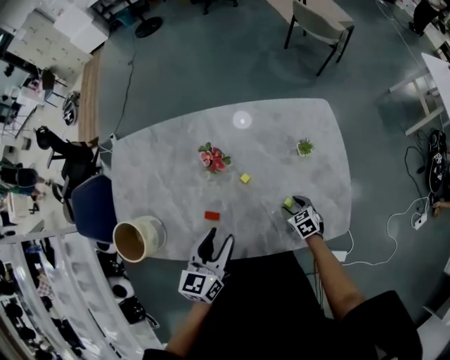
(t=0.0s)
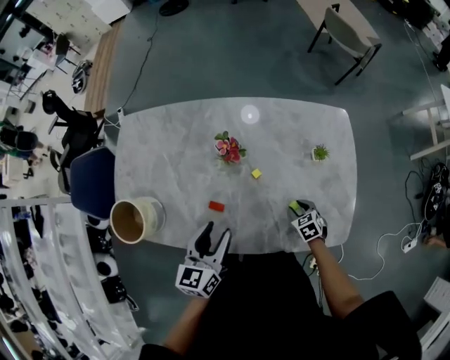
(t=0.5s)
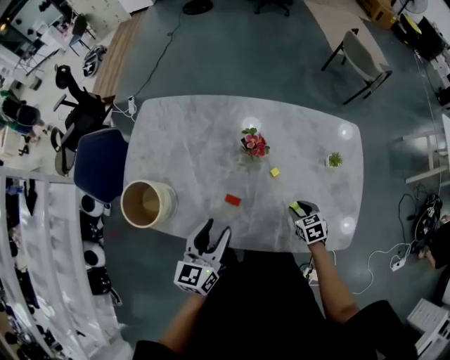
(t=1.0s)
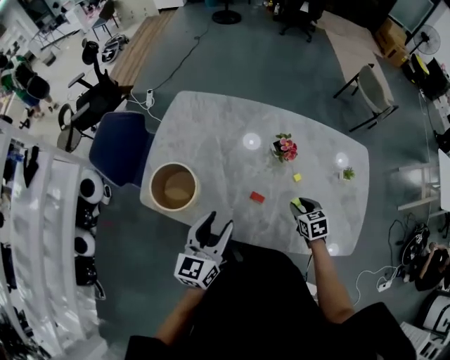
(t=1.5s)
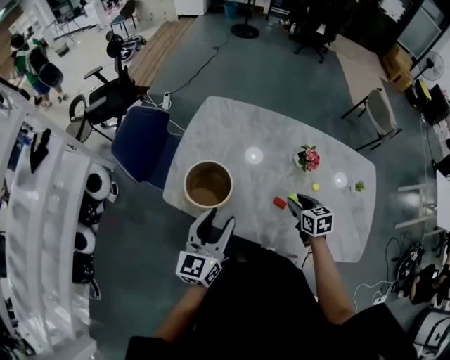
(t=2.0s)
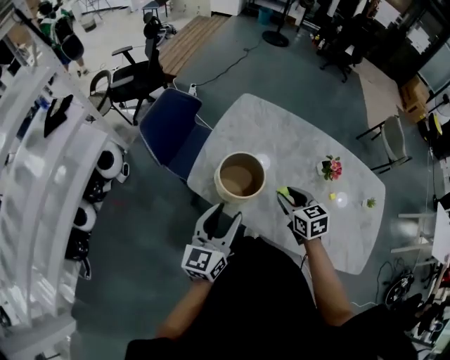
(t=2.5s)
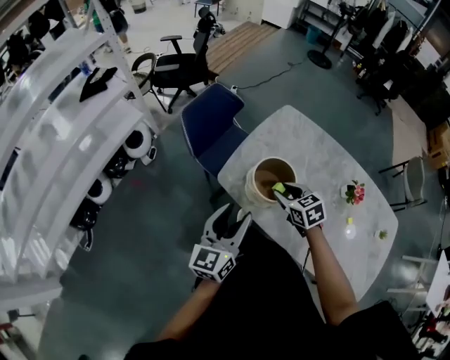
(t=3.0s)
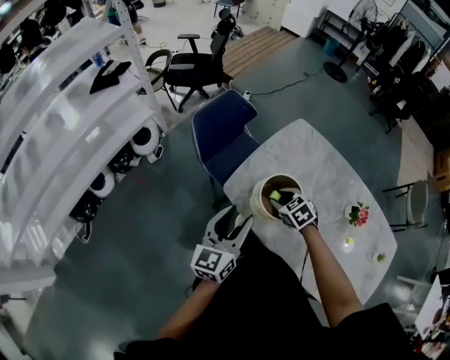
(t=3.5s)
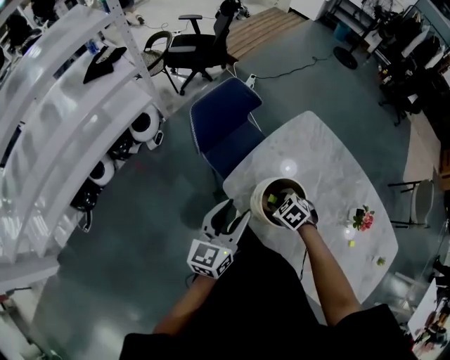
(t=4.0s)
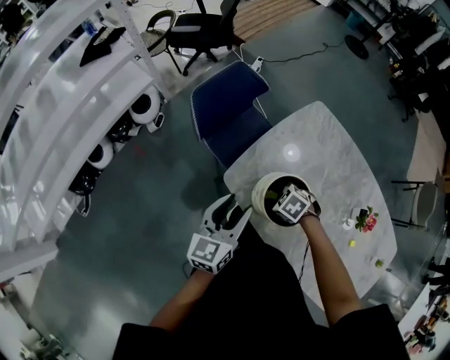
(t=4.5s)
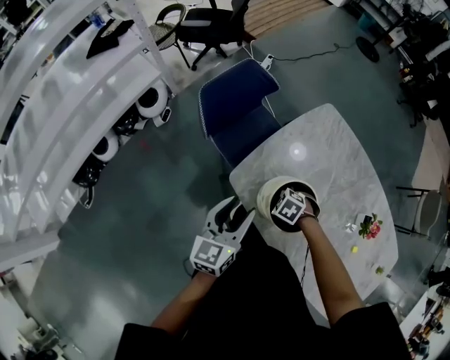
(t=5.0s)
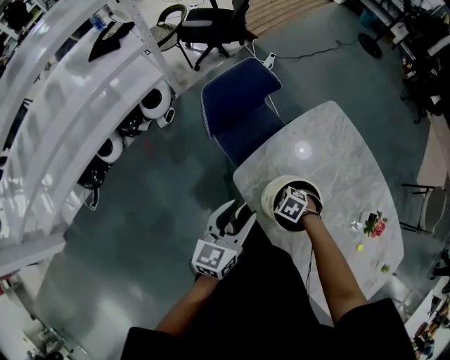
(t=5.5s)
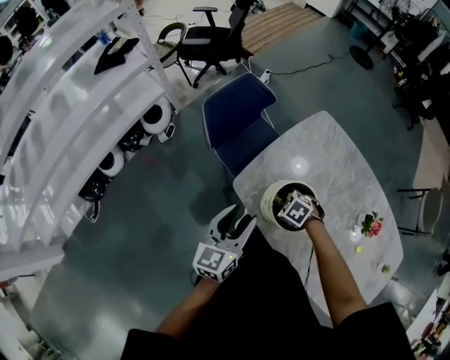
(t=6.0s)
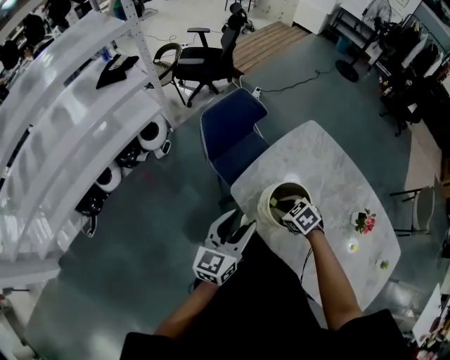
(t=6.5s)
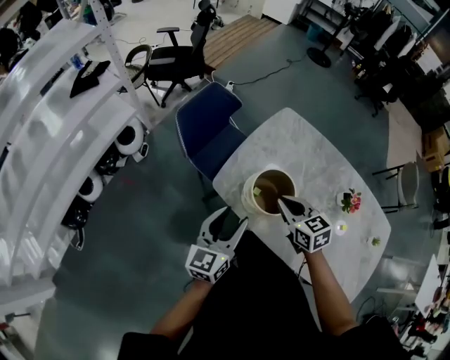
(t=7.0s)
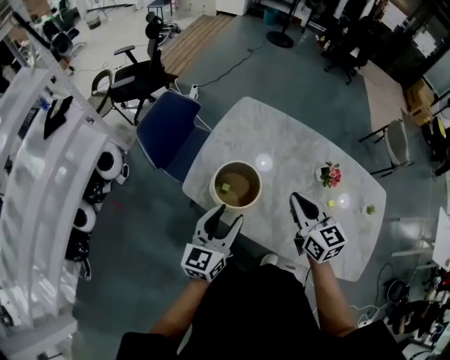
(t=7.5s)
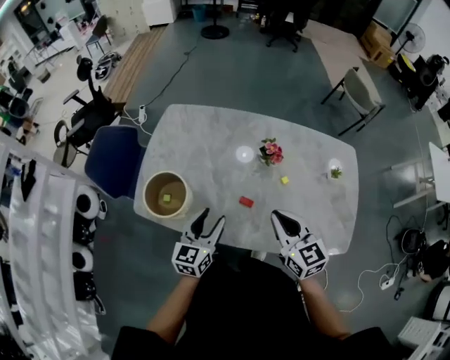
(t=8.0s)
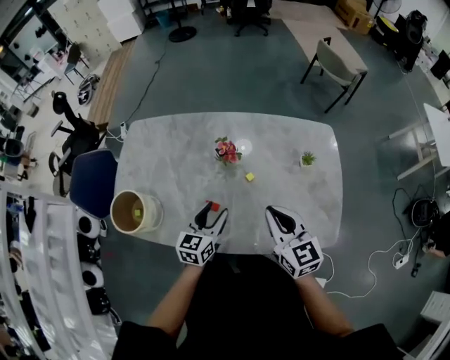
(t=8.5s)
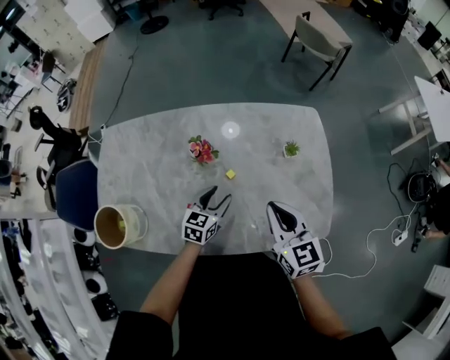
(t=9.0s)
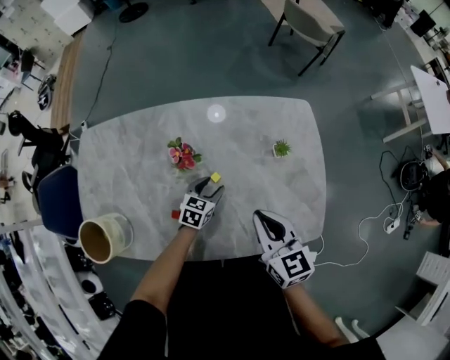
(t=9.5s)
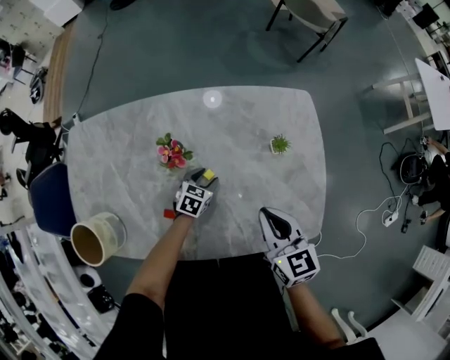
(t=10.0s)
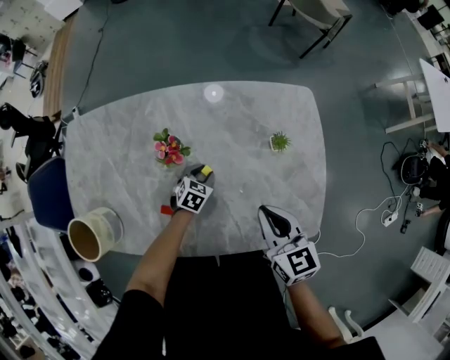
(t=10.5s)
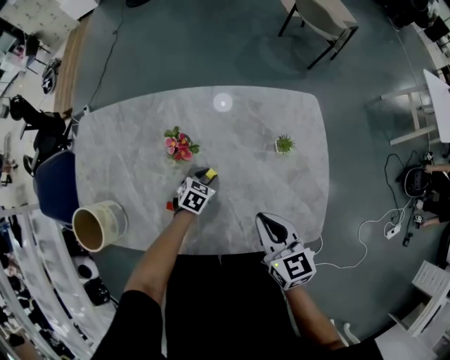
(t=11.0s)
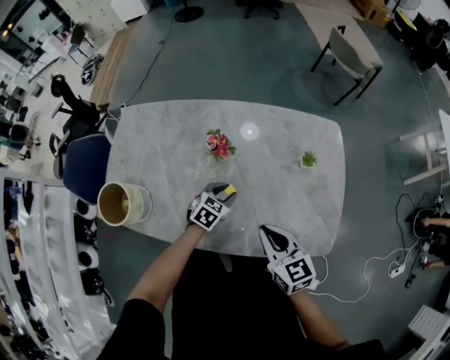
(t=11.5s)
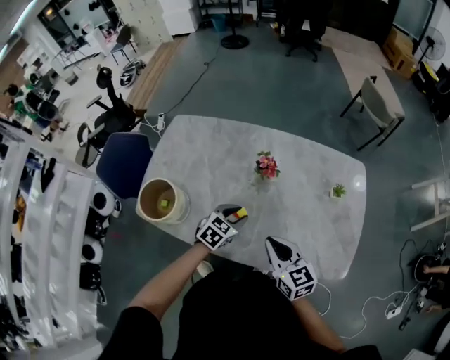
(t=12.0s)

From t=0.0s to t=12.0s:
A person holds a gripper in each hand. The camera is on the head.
From t=0.0s to t=2.0s: The left gripper goes approximately 35 cm to the left, and turns by approximately 30 degrees. Meanwhile the right gripper shifts approximately 40 cm to the left and upward.
From t=2.0s to t=4.0s: The right gripper changes place by some 35 cm, and rotates around the line of its fingers by roughly 60 degrees, counterclockwise from behind, while the left gripper ends up roughly 20 cm from where it was, and turns by roughly 20 degrees.
From t=6.0s to t=8.0s: The right gripper shifts by some 50 cm, tilts its fingers approximately 50 degrees upward, and closes. Meanwhile the left gripper moves about 35 cm, and swivels about 40 degrees.
From t=8.0s to t=10.0s: The left gripper changes place by about 50 cm, and angles its fingers downward, by some 40 degrees. The right gripper ends up about 30 cm from where it was, and changes its angle by some 20 degrees.
From t=10.0s to t=12.0s: The left gripper shifts some 25 cm upward, backward and to the left; the right gripper is displaced to the left and backward by some 20 cm, and turns by approximately 20 degrees.

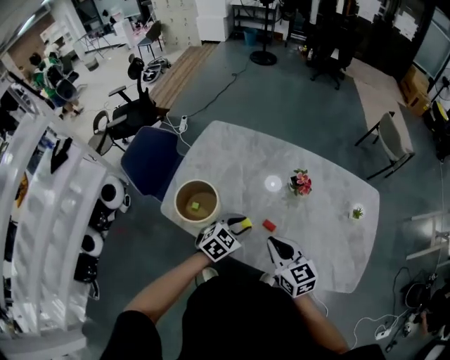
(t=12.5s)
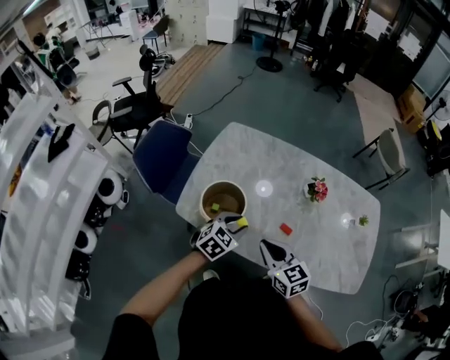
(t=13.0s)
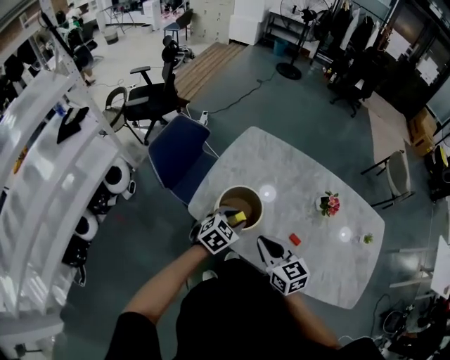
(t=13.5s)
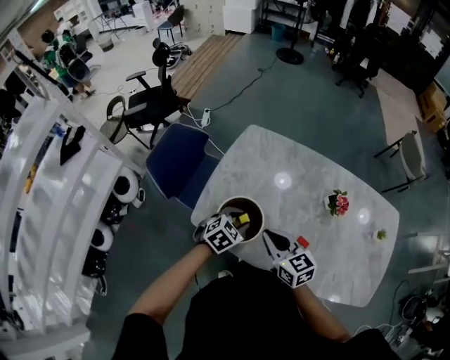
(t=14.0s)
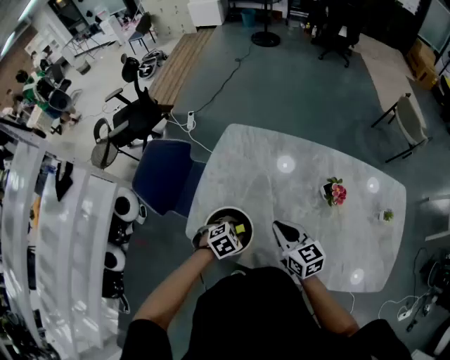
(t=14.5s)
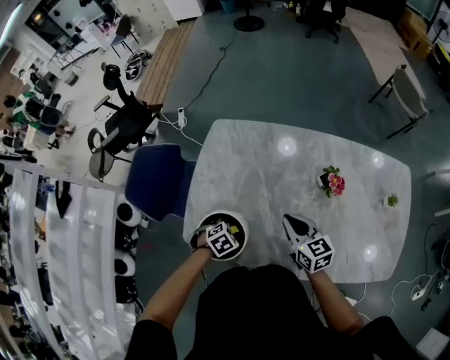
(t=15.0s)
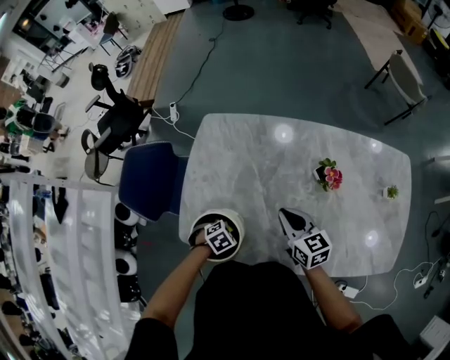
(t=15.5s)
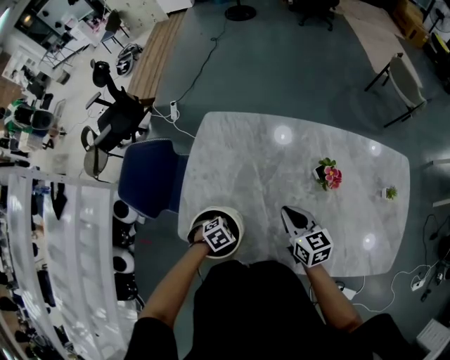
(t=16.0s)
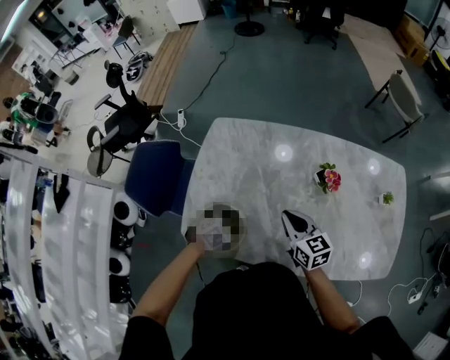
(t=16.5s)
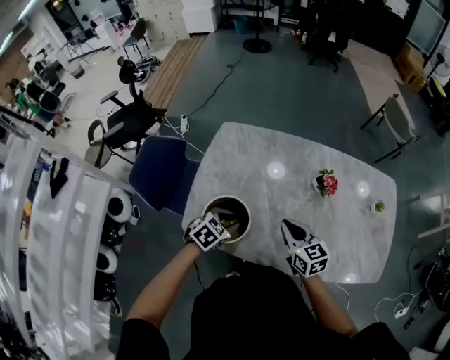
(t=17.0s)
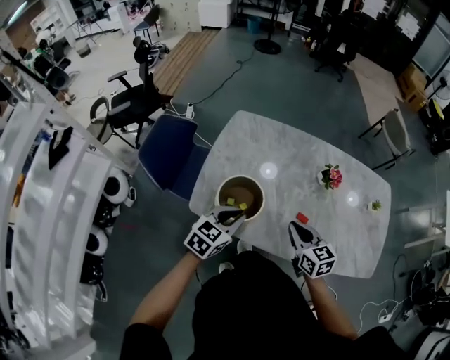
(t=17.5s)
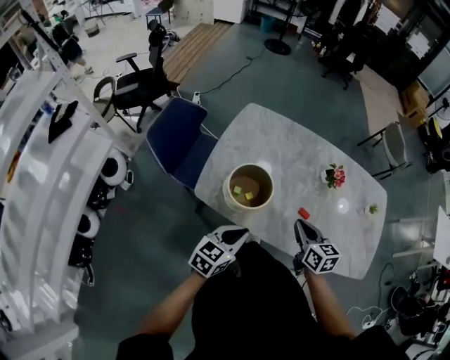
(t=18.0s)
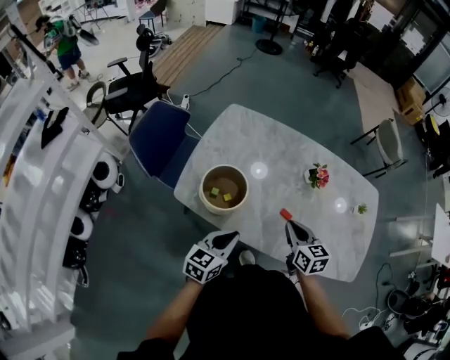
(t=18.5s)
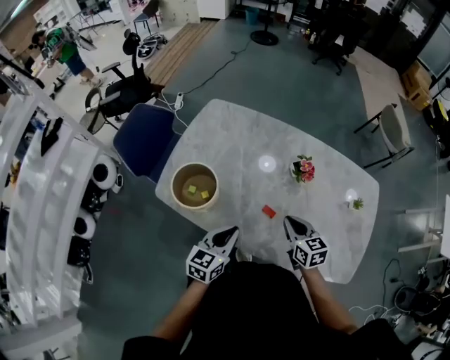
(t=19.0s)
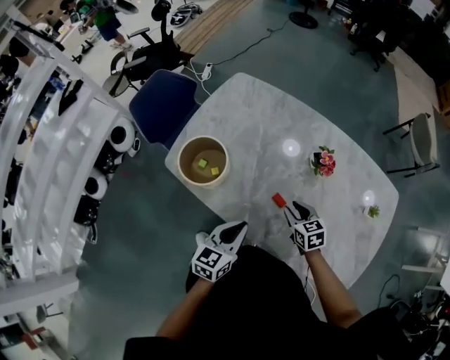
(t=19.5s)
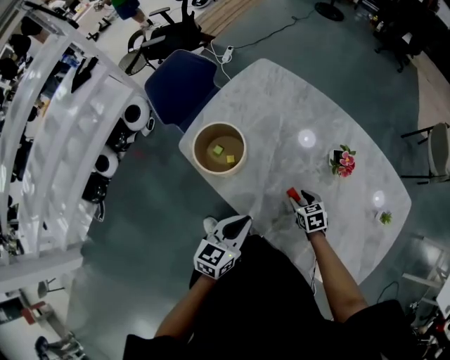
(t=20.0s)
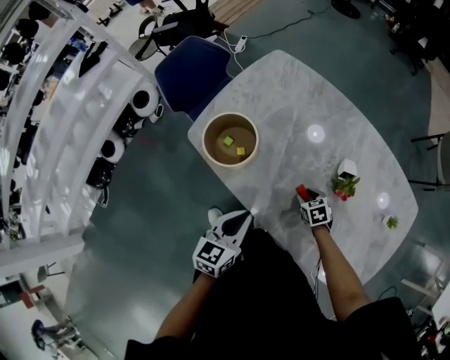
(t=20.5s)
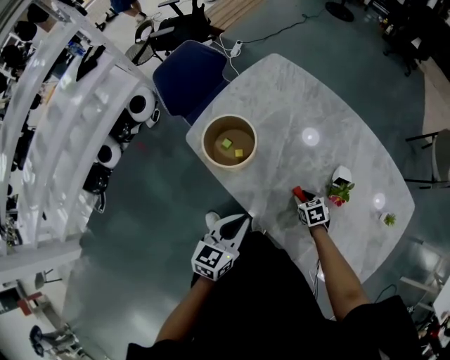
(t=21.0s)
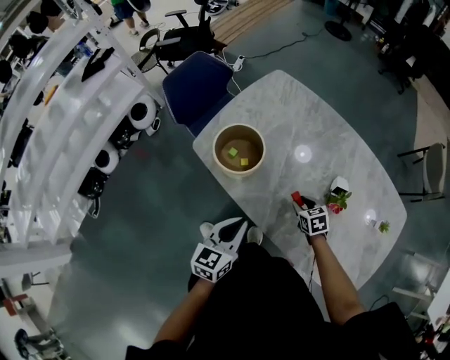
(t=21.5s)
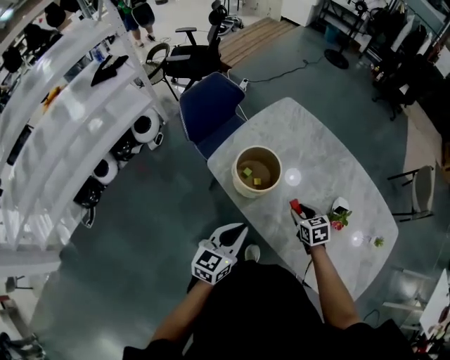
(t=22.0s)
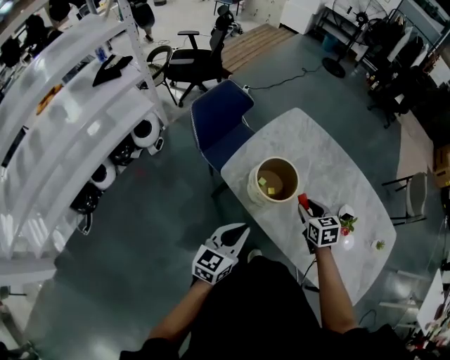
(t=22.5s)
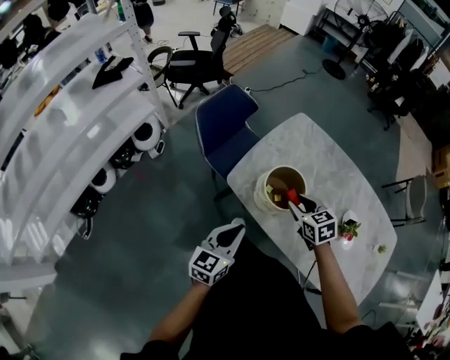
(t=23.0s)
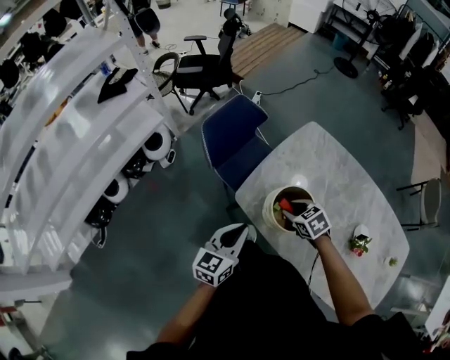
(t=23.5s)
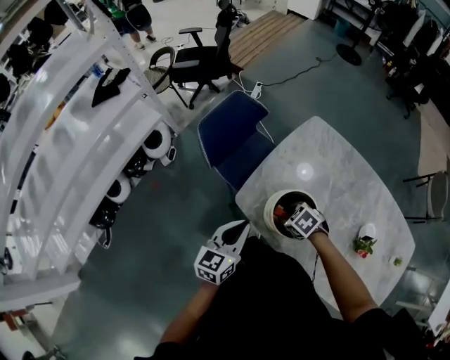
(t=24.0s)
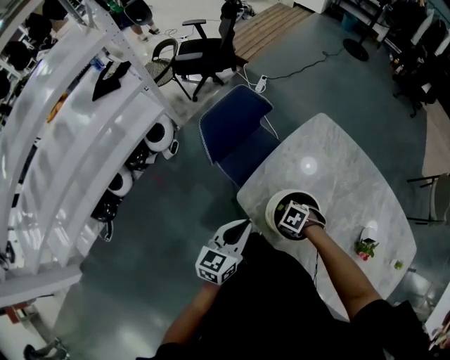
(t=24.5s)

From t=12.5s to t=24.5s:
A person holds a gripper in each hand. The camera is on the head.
From t=12.5s to t=14.5s: The right gripper shifts roughly 20 cm to the left and forward. The left gripper goes roughly 20 cm to the left and downward, and swivels some 30 degrees.
From t=14.5s to t=16.5s: The right gripper ends up some 5 cm from where it was.
From t=16.5s to t=18.5s: The right gripper shifts some 15 cm backward. The left gripper moves backward and upward, some 20 cm, tips its fingers upward by approximately 50 degrees, and closes.
From t=18.5s to t=20.5s: The left gripper shifts by about 10 cm, and changes its angle by roughly 30 degrees; the right gripper goes some 30 cm downward, angles its fingers downward, by approximately 30 degrees, and opens up.
From t=20.5s to t=22.5s: The left gripper is displaced to the left by some 20 cm; the right gripper heads upward and to the left, covering approximately 30 cm, and swivels about 20 degrees.
From t=22.5s to t=24.5s: The right gripper shifts approximately 15 cm downward, and rotates about 60 degrees; the left gripper moves some 15 cm.

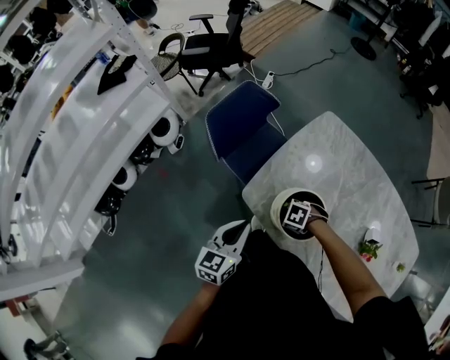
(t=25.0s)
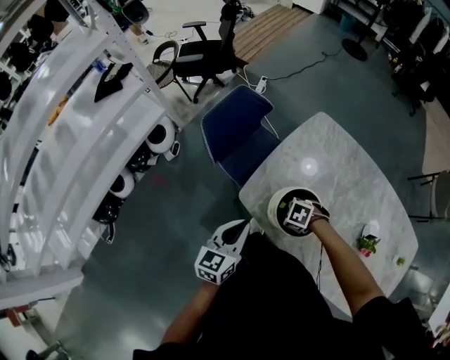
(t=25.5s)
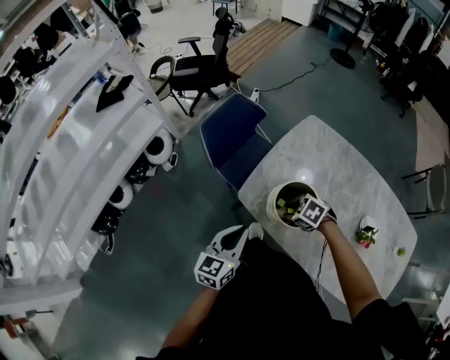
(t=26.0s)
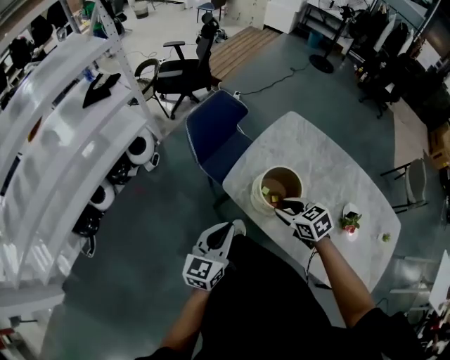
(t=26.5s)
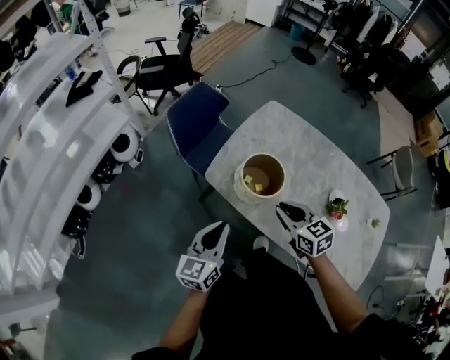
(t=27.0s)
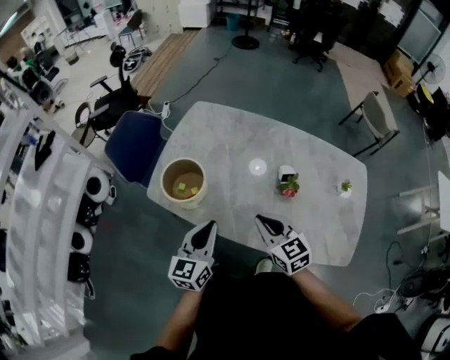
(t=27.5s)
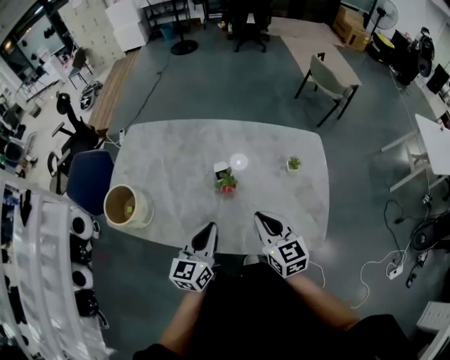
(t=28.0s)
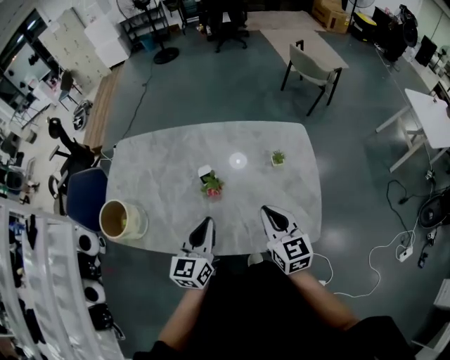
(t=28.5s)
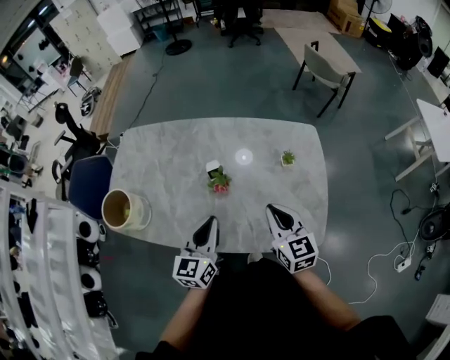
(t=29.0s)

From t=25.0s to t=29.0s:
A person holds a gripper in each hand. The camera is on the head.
From t=25.0s to t=27.0s: The right gripper moves upward, about 25 cm, and points its fingers about 40 degrees further upward. Meanwhile the left gripper shifts by about 15 cm.
From t=27.0s to t=29.0s: The two grippers travel together, about 50 cm. The right gripper rotates some 40 degrees; the left gripper swivels approximately 30 degrees.
